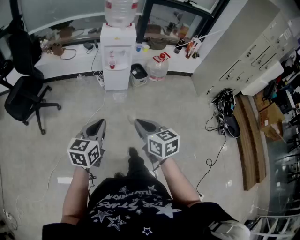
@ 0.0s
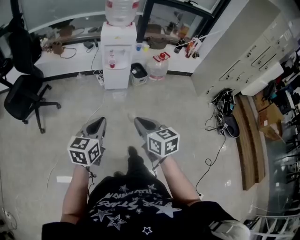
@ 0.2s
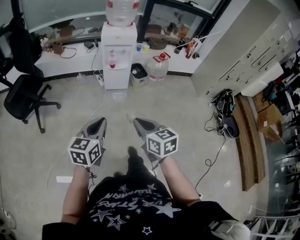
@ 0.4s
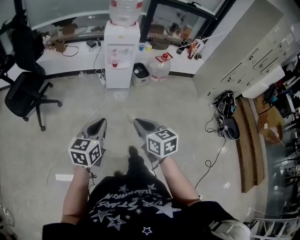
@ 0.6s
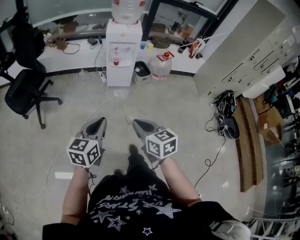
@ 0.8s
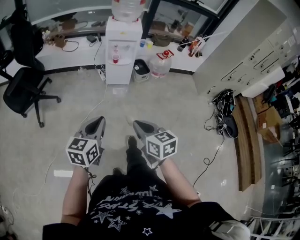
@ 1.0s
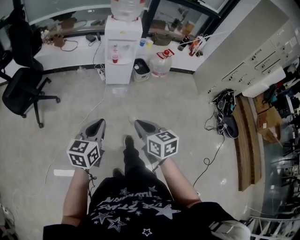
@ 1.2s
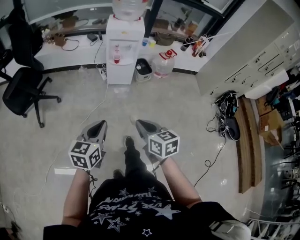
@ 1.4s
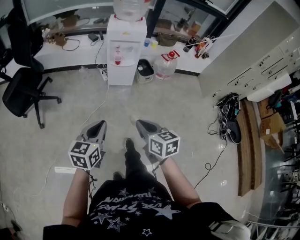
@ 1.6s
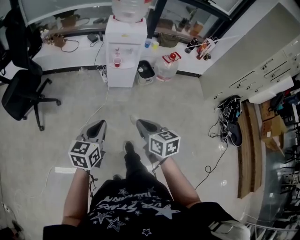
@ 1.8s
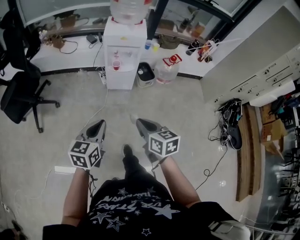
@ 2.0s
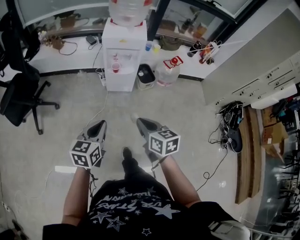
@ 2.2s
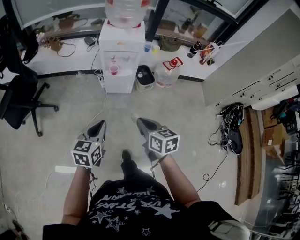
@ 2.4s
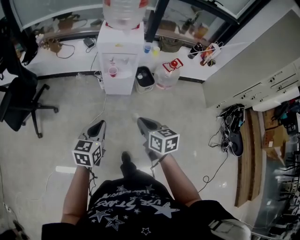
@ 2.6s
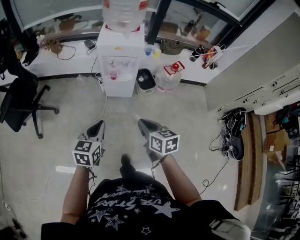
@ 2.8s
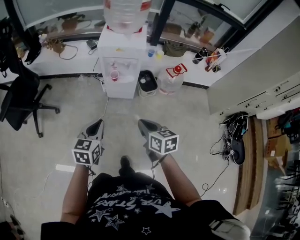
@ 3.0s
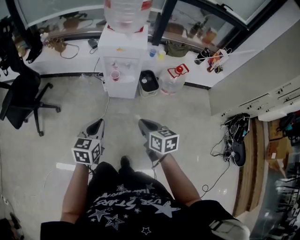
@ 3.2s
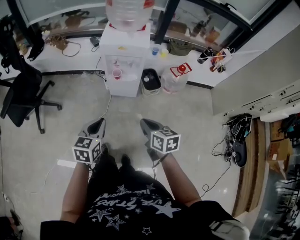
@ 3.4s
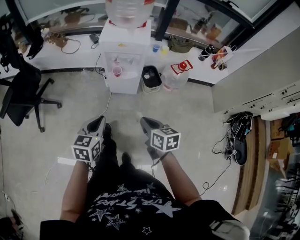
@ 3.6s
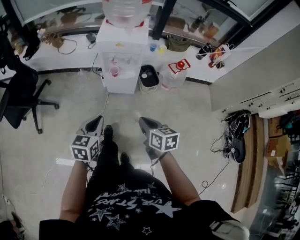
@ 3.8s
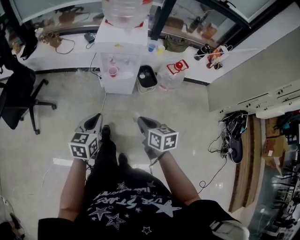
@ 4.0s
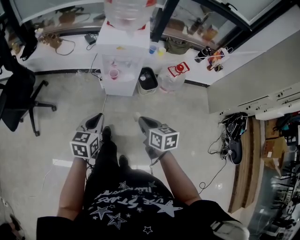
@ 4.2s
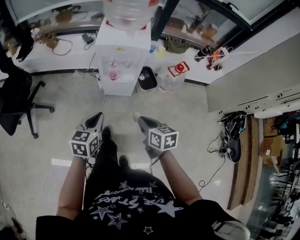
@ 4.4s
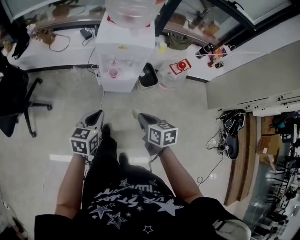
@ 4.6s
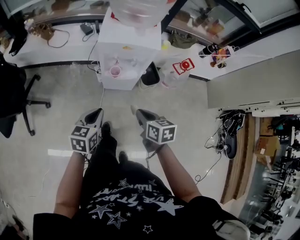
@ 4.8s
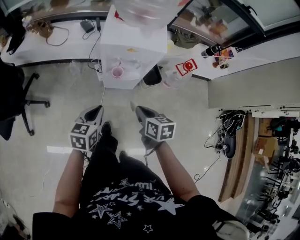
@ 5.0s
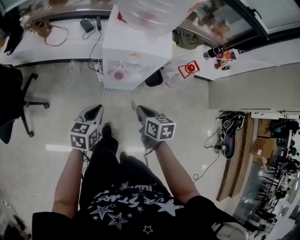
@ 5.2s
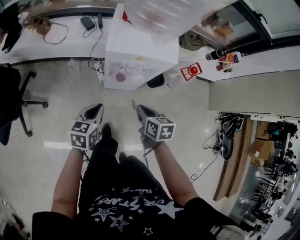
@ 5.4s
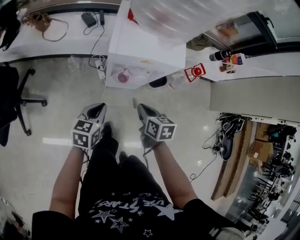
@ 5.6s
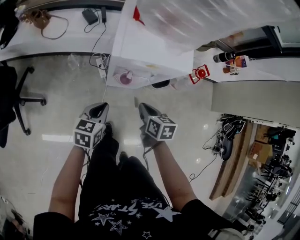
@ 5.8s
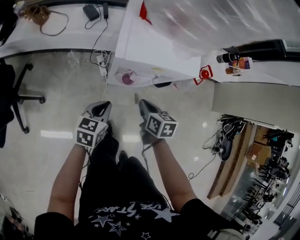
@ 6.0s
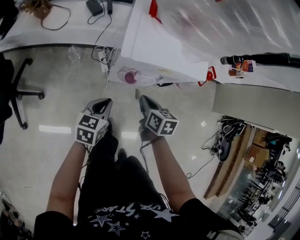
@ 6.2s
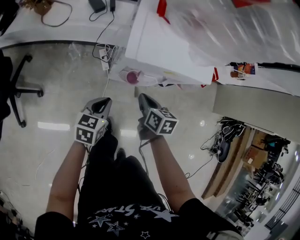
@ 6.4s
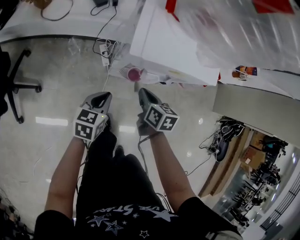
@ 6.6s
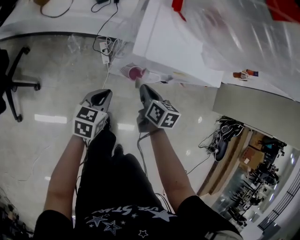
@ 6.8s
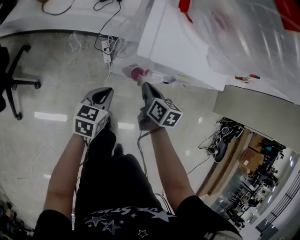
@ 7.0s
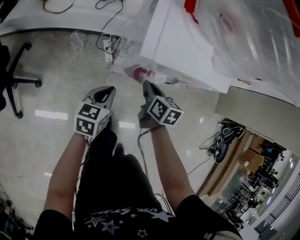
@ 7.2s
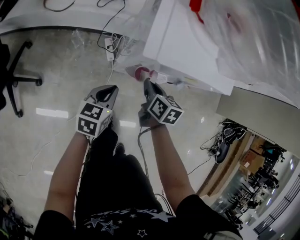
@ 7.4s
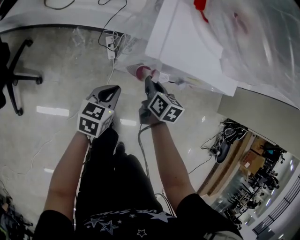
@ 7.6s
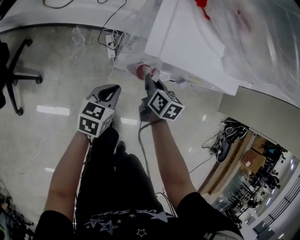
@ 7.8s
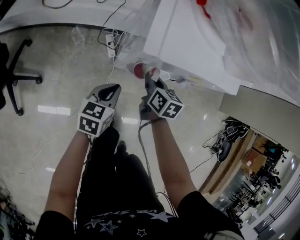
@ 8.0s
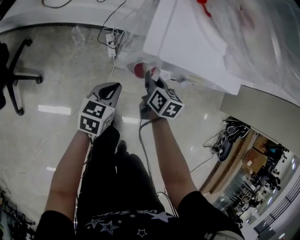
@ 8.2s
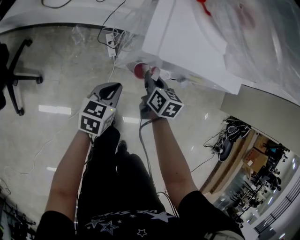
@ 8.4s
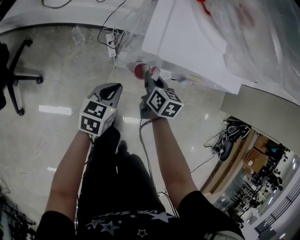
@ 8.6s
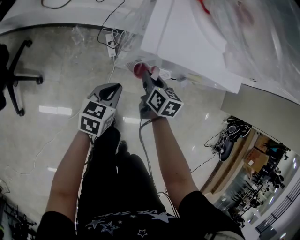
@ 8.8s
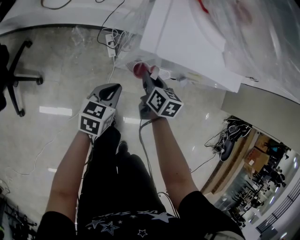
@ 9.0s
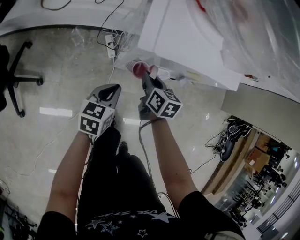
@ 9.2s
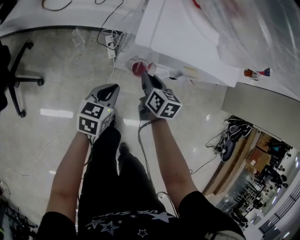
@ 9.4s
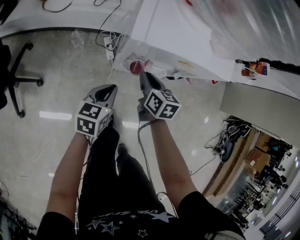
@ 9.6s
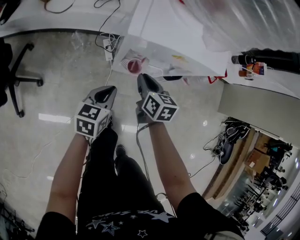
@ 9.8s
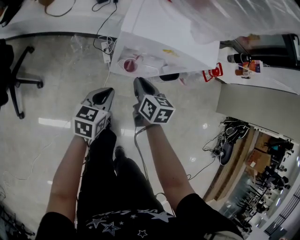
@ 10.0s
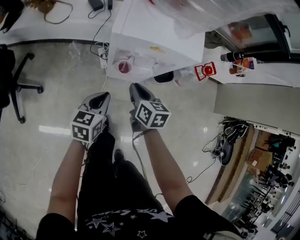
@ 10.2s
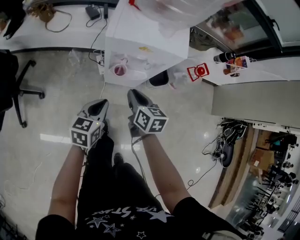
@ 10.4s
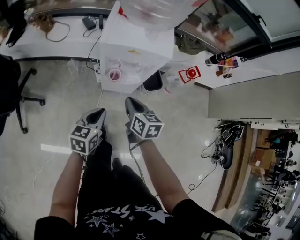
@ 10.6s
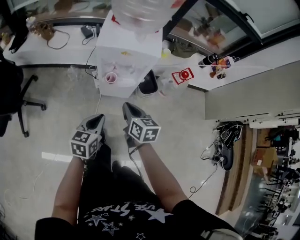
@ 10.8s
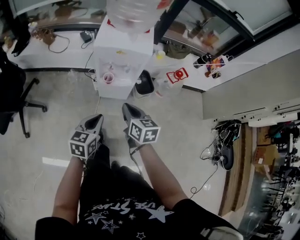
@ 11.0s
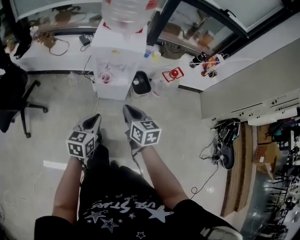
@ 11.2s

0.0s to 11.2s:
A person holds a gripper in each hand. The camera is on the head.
0.0s to 1.6s: The grippers both shift forward by about 10 cm.
1.6s to 3.2s: The right gripper heads forward and to the right, covering some 30 cm, while the left gripper travels forward by approximately 25 cm.
3.2s to 4.8s: Both grippers travel together forward and downward, approximately 20 cm.
4.8s to 6.4s: The left gripper heads forward and downward, covering some 25 cm. Meanwhile the right gripper travels forward, downward and to the left by approximately 30 cm.
6.4s to 8.0s: The left gripper travels downward by roughly 5 cm. Meanwhile the right gripper moves downward and forward, approximately 10 cm.
8.0s to 9.6s: The grippers stay close to where they were, moving slightly.
9.6s to 11.2s: The two grippers go approximately 40 cm backward, upward and to the right.

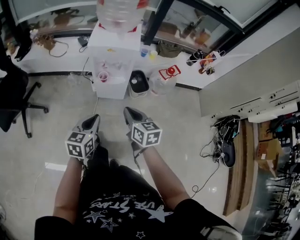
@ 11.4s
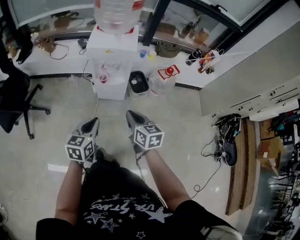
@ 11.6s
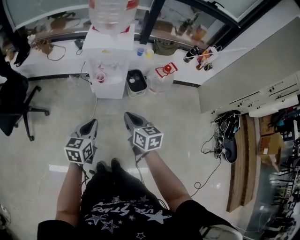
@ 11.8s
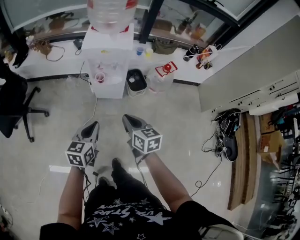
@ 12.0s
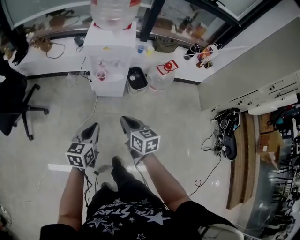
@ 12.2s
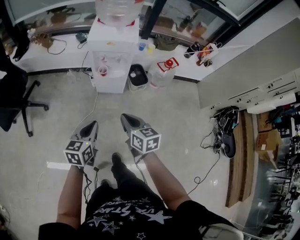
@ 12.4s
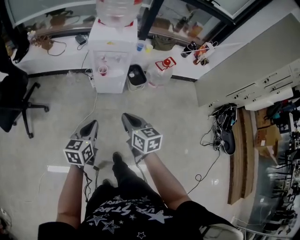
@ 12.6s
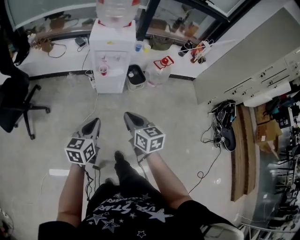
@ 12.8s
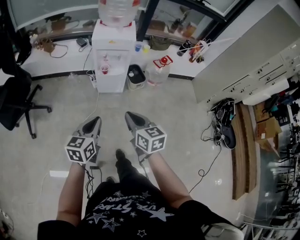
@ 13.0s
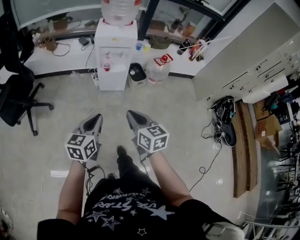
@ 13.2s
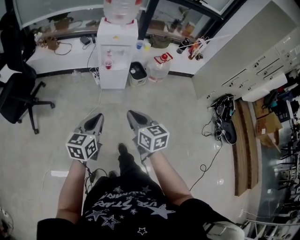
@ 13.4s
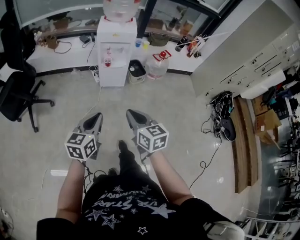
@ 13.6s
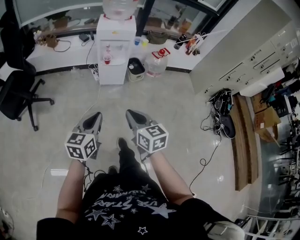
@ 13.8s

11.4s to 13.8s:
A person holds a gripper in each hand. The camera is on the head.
11.4s to 12.6s: Both grippers move backward, roughly 10 cm.
12.6s to 13.8s: Both grippers move backward, approximately 20 cm.

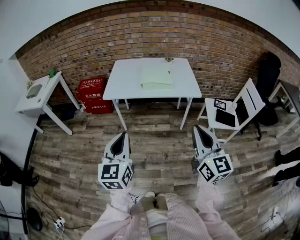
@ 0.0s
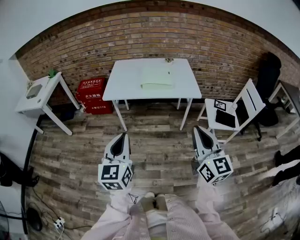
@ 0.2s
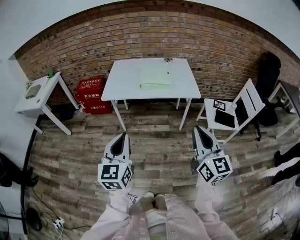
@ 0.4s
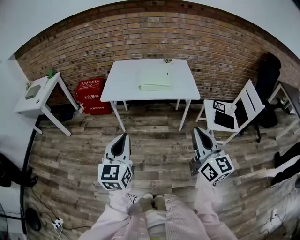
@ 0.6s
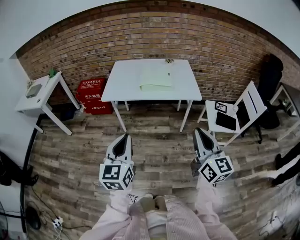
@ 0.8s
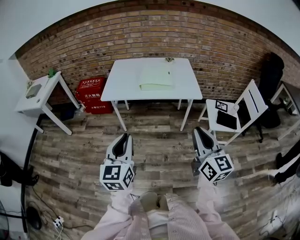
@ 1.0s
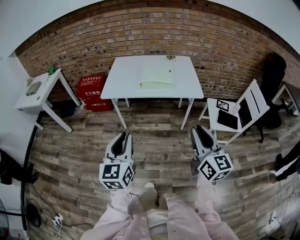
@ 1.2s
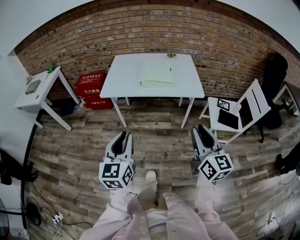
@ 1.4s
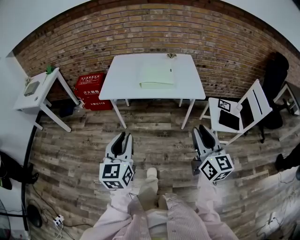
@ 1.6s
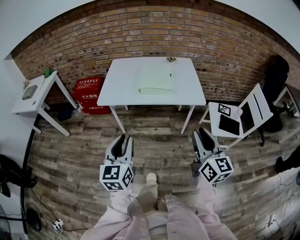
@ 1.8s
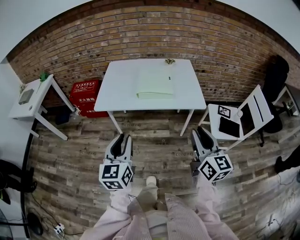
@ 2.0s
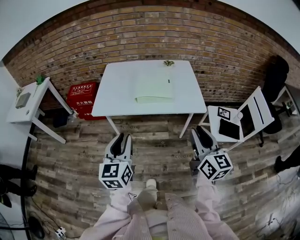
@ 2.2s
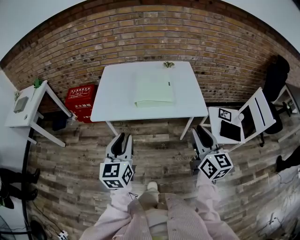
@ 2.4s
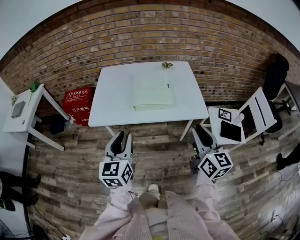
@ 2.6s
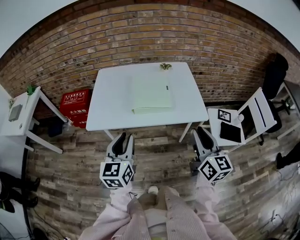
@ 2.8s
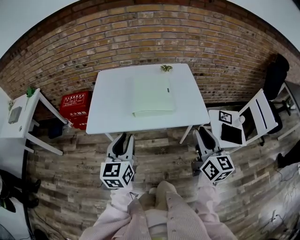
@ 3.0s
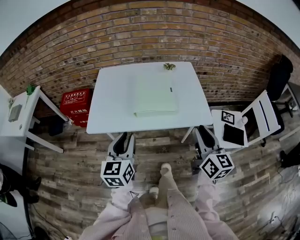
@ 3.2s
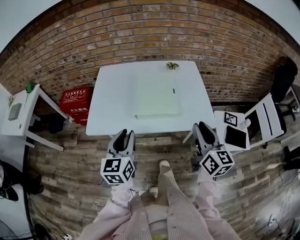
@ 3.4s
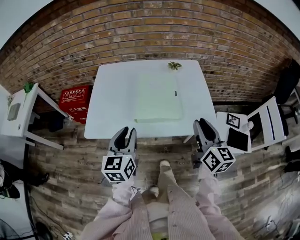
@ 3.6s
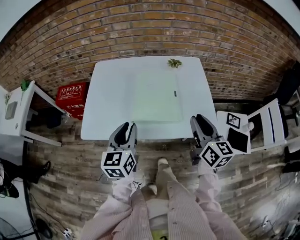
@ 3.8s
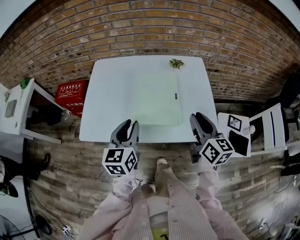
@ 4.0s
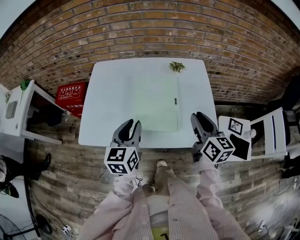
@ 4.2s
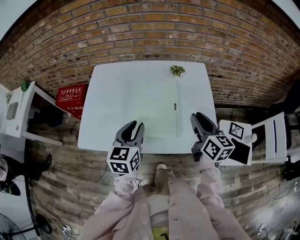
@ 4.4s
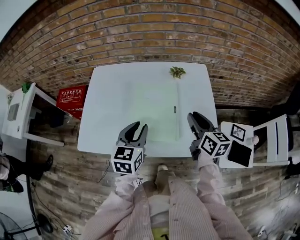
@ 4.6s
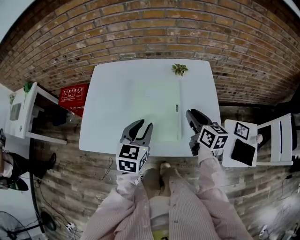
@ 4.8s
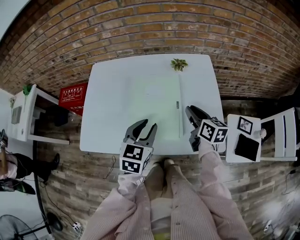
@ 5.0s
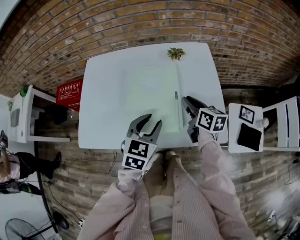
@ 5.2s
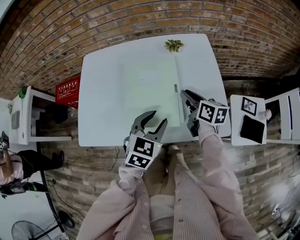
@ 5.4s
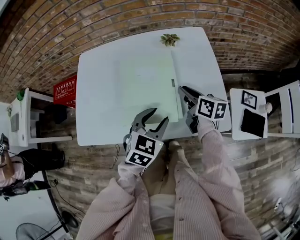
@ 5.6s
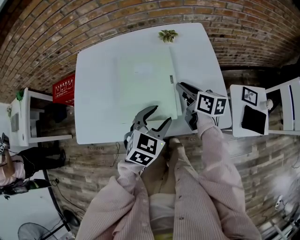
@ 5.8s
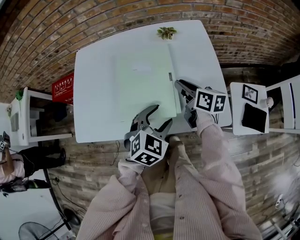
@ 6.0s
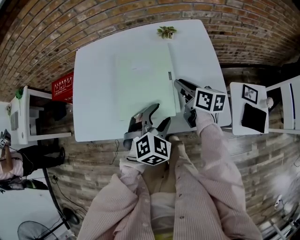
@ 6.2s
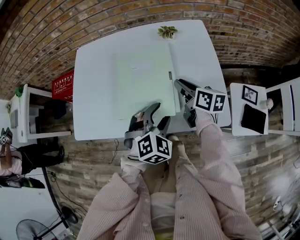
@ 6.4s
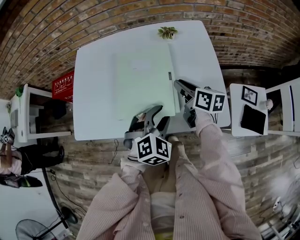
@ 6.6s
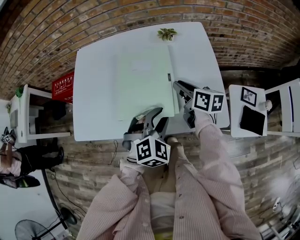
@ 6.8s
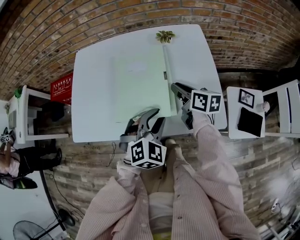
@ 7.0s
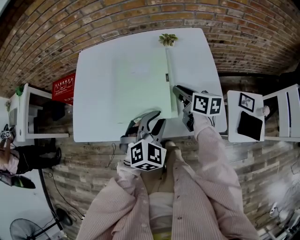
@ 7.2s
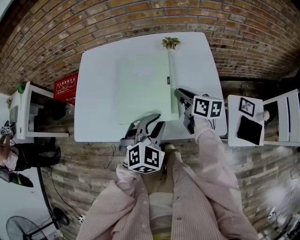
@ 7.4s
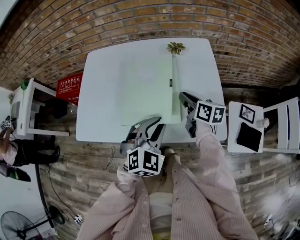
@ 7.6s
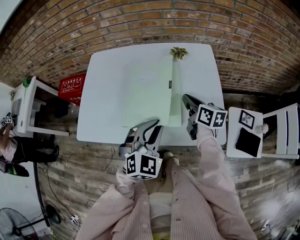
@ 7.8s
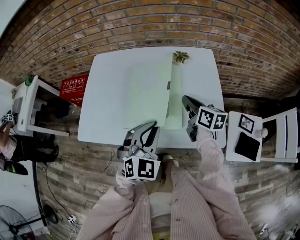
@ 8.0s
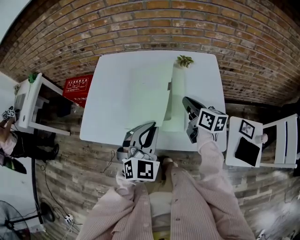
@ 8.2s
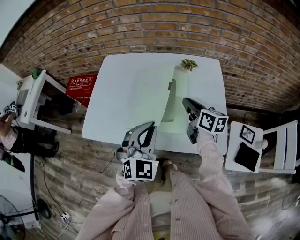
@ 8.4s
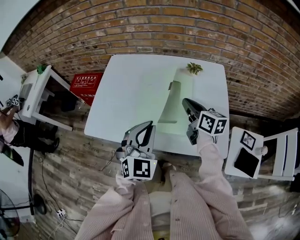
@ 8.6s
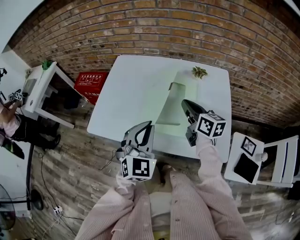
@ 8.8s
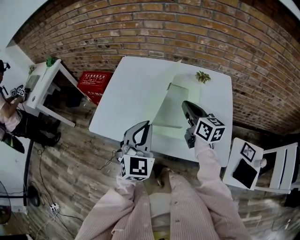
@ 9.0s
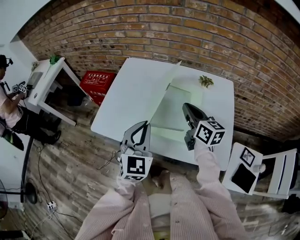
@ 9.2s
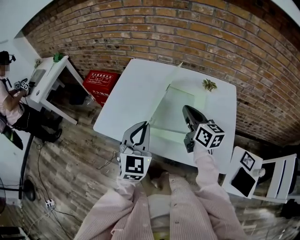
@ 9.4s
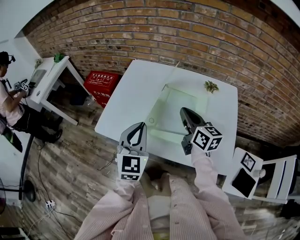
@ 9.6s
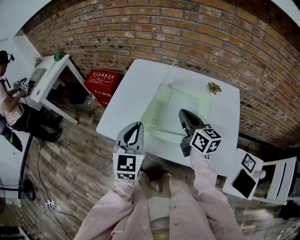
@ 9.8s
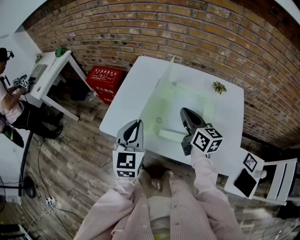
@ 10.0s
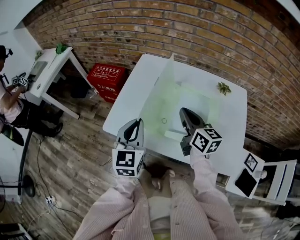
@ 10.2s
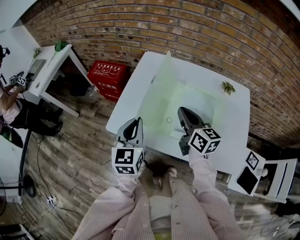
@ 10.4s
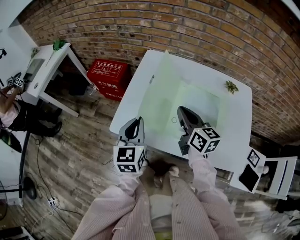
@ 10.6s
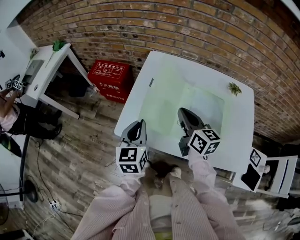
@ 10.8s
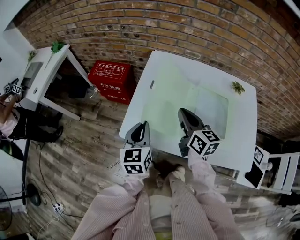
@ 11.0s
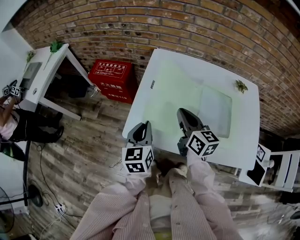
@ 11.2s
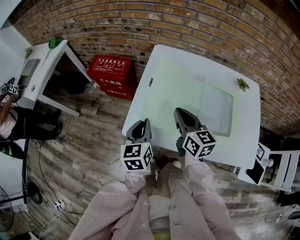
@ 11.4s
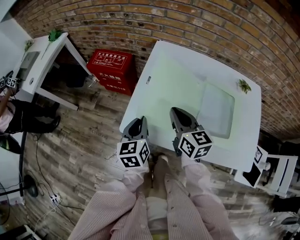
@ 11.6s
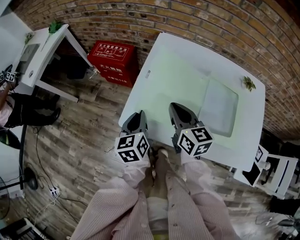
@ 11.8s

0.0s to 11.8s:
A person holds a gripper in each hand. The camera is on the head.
0.0s to 1.4s: The left gripper moves approximately 5 cm. Meanwhile the right gripper moves forward and downward, about 10 cm, and opens.
1.4s to 3.0s: Both grippers move forward, some 25 cm.
3.0s to 4.4s: Both grippers move forward, about 25 cm.
4.4s to 6.0s: The left gripper moves to the right and downward, approximately 15 cm, swivels about 50 degrees, and opens its fingers; the right gripper is displaced downward and forward by roughly 15 cm, and turns by roughly 20 degrees.
6.0s to 7.4s: The left gripper closes.
7.4s to 8.8s: The left gripper heads to the left and upward, covering roughly 15 cm, and turns by about 30 degrees; the right gripper shifts roughly 10 cm upward and to the left.
8.8s to 10.4s: The left gripper heads to the left and forward, covering some 20 cm, and changes its angle by about 40 degrees, while the right gripper shifts roughly 15 cm to the left.
10.4s to 11.8s: The left gripper travels downward, to the left and forward by some 15 cm, and swivels approximately 30 degrees. The right gripper travels to the left by approximately 15 cm.
